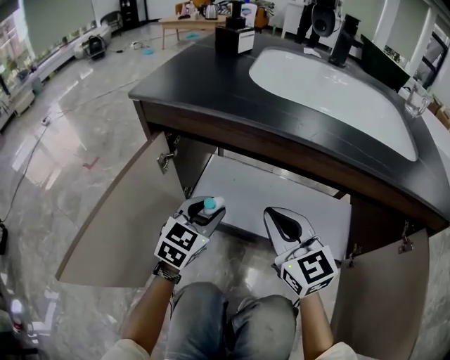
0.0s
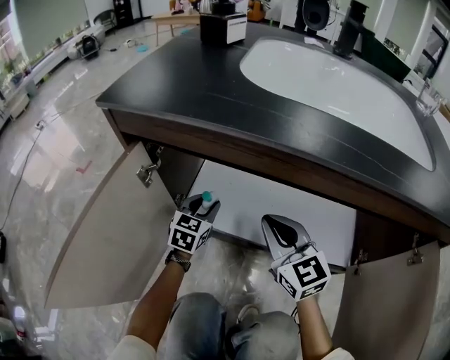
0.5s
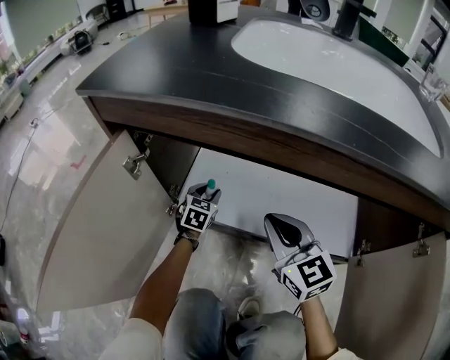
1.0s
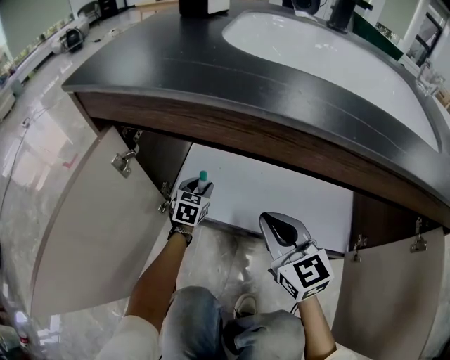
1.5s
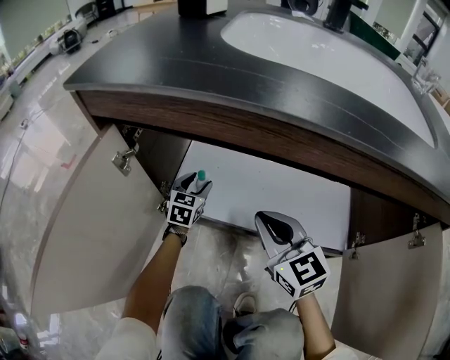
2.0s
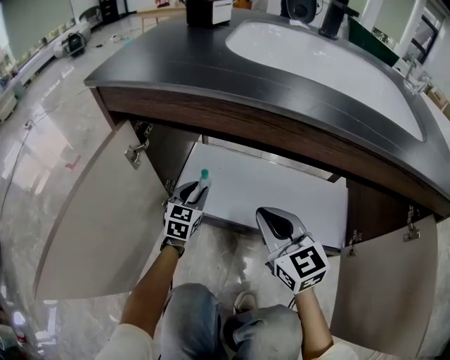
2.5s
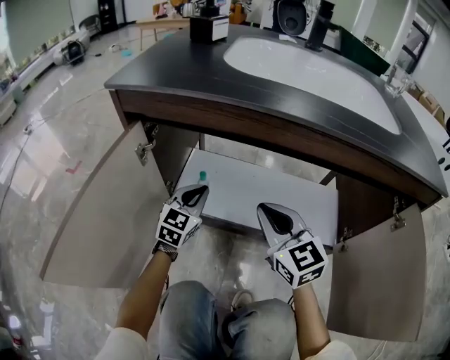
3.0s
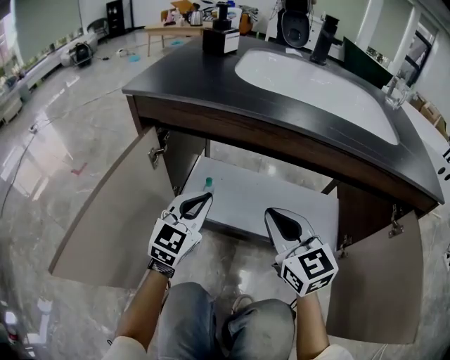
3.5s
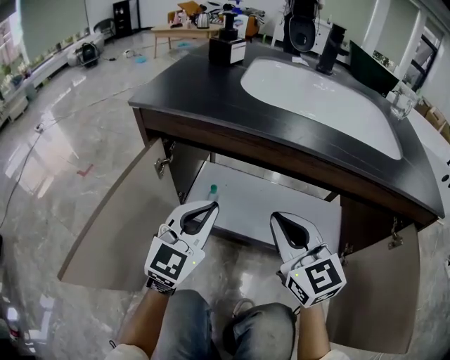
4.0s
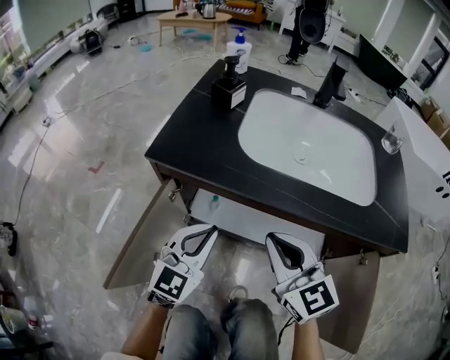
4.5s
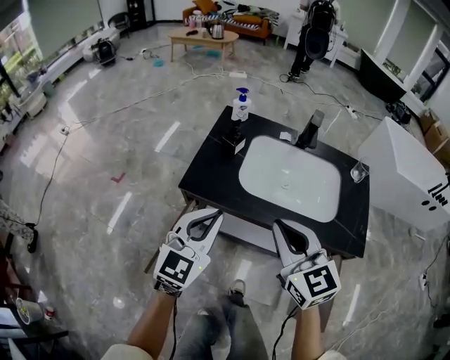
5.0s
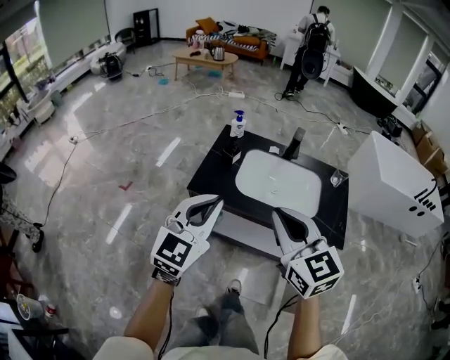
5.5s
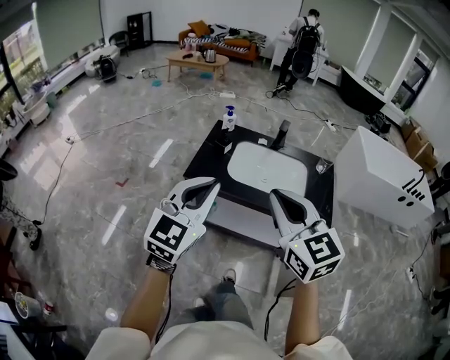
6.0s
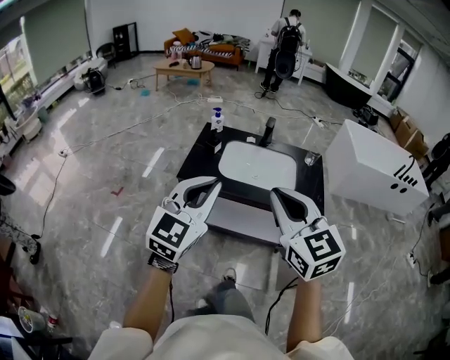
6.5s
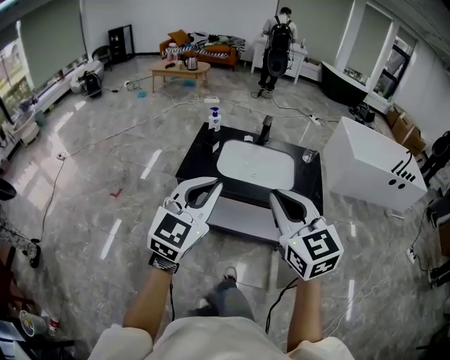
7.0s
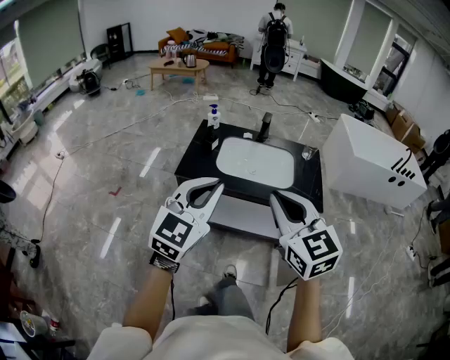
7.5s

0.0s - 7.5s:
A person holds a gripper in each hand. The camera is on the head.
0.0s - 2.0s: The right gripper heads downward, covering about 10 cm. Meanwhile the left gripper goes approximately 25 cm downward and forward, and opens its fingers.
2.0s - 4.0s: The right gripper heads upward and backward, covering some 15 cm, while the left gripper moves upward and backward, roughly 35 cm, rotates about 30 degrees, and closes.
4.0s - 5.5s: The two grippers go about 60 cm upward.
5.5s - 7.5s: The right gripper goes roughly 15 cm backward; the left gripper heads backward, upward and to the right, covering some 15 cm.

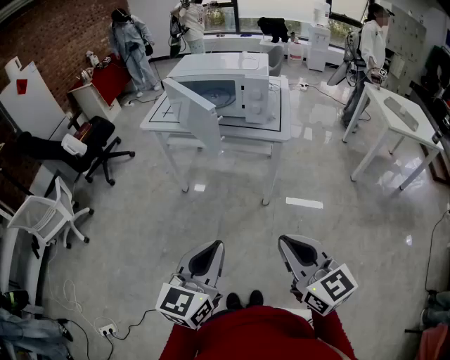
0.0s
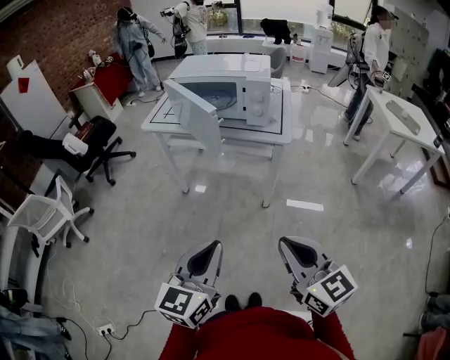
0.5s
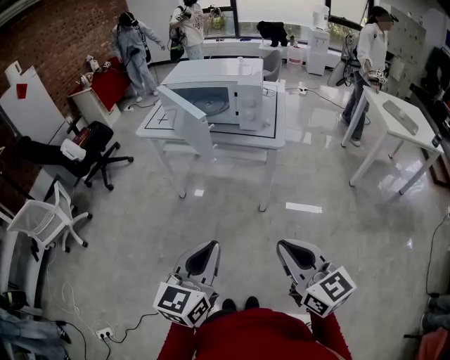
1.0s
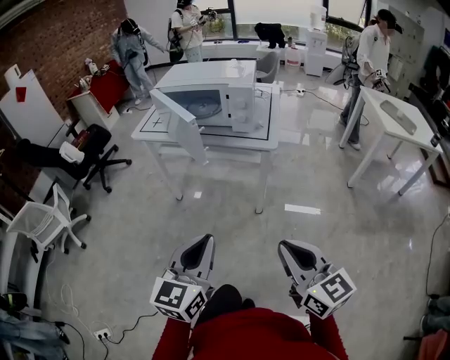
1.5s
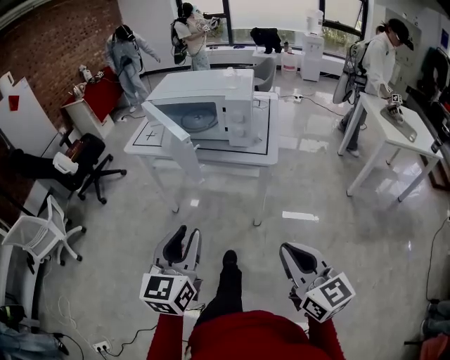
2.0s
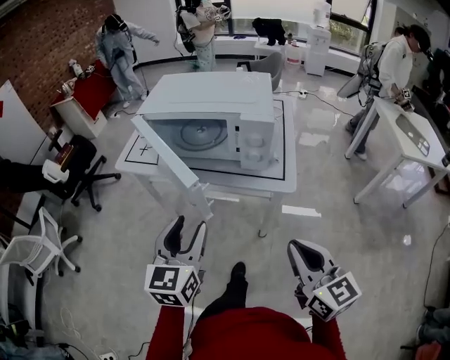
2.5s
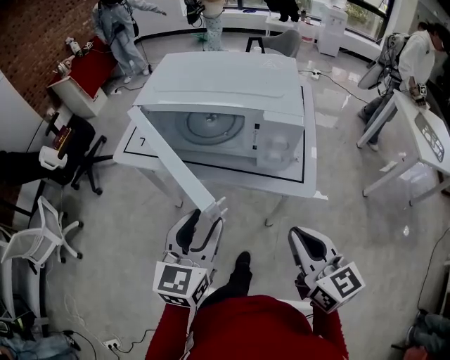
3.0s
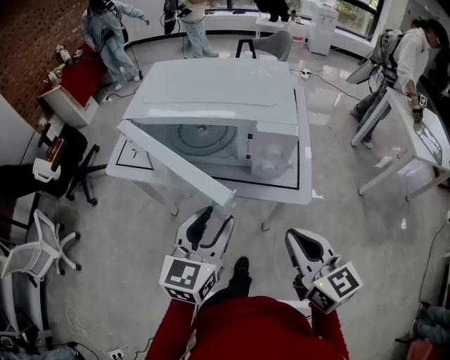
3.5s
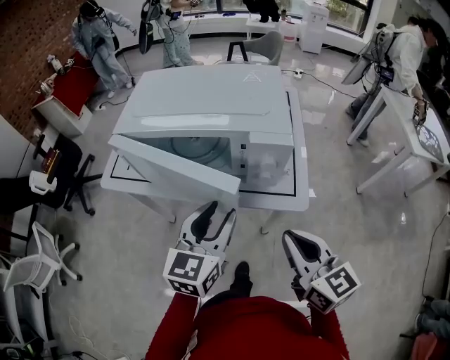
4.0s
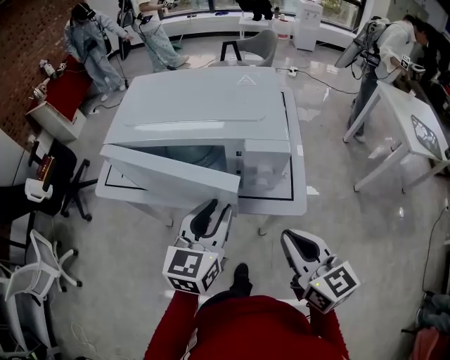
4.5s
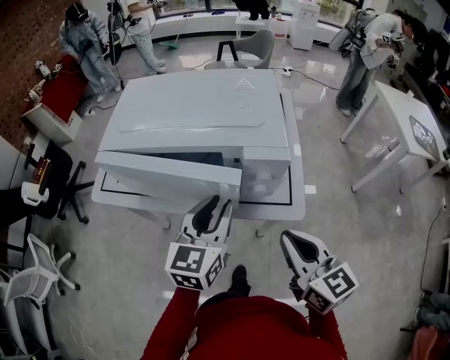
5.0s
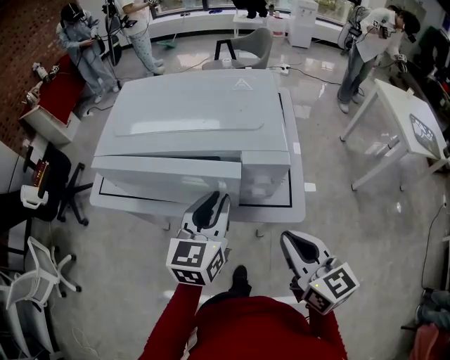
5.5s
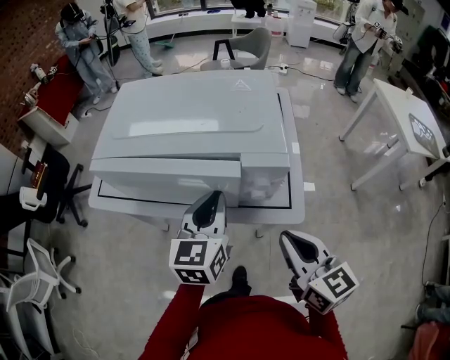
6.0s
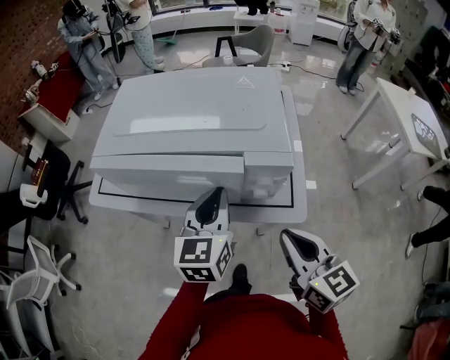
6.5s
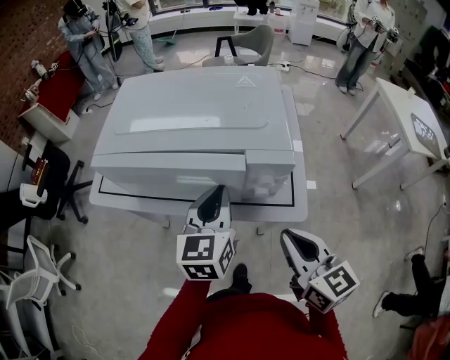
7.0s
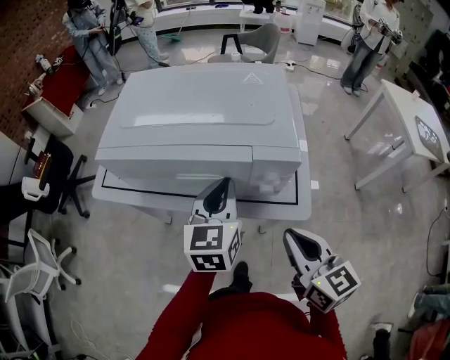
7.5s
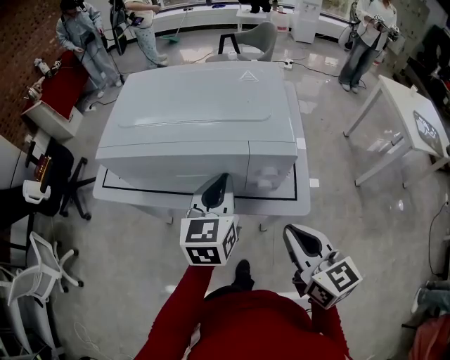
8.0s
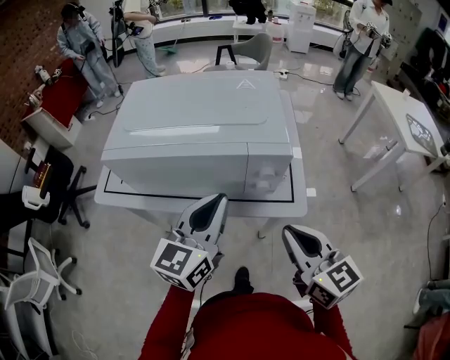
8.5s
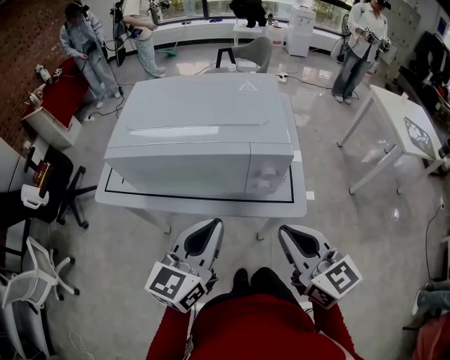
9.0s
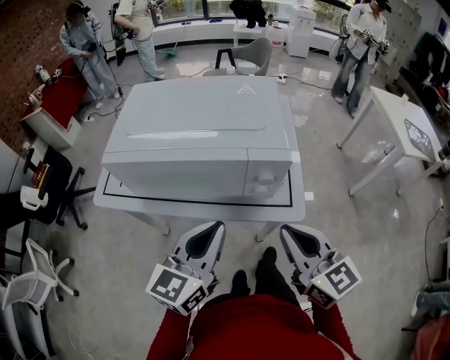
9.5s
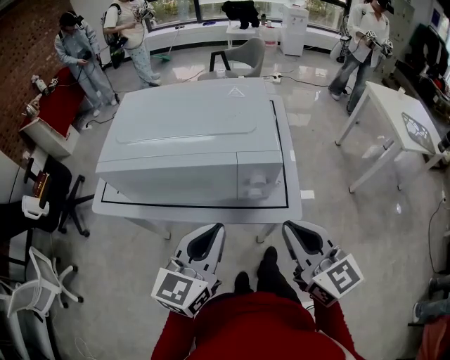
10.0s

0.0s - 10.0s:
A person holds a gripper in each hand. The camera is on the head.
0.0s - 2.0s: The left gripper travels forward by roughly 15 cm, and opens up; the right gripper moves to the right and forward, approximately 10 cm.
2.0s - 4.0s: Both grippers move forward, some 25 cm.
4.0s - 6.0s: The left gripper is displaced forward by roughly 10 cm, and closes its fingers.
6.0s - 8.0s: The grippers make only small movements.
8.0s - 10.0s: The left gripper shifts roughly 10 cm backward. The right gripper moves approximately 5 cm.

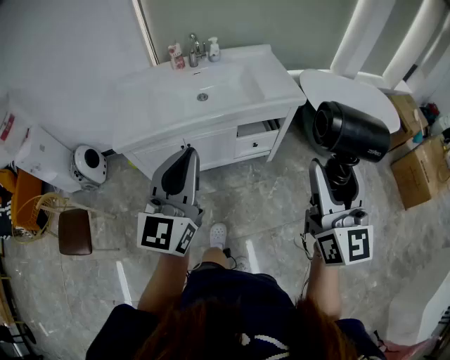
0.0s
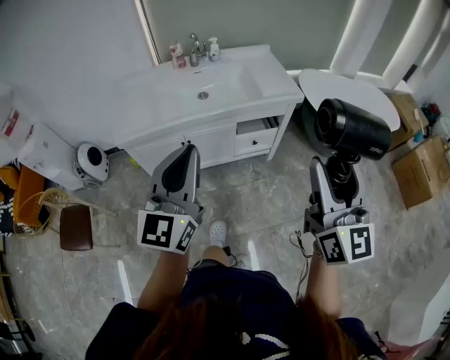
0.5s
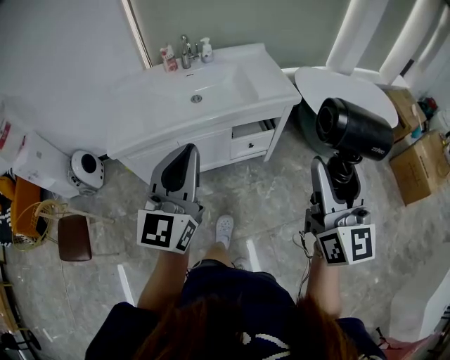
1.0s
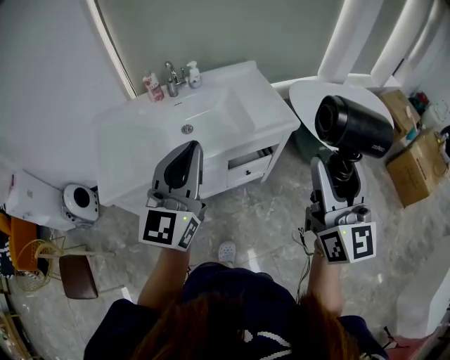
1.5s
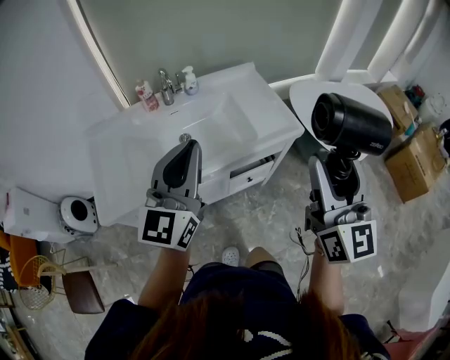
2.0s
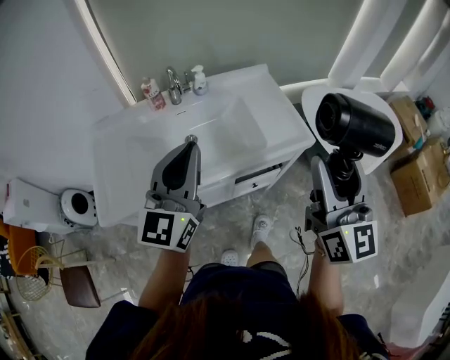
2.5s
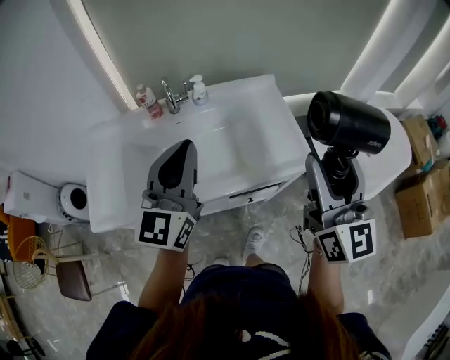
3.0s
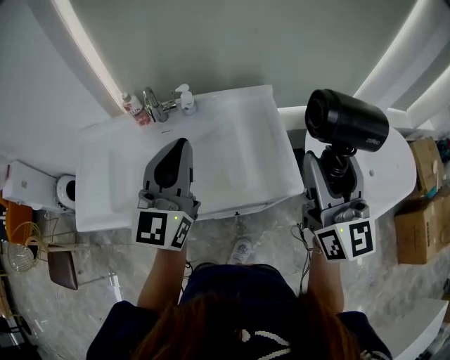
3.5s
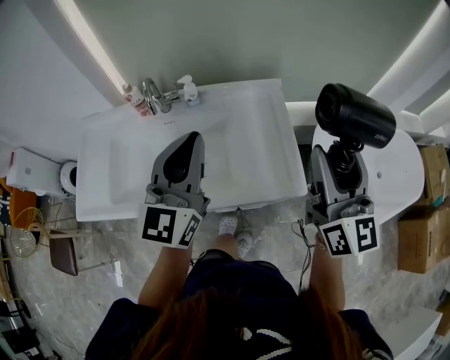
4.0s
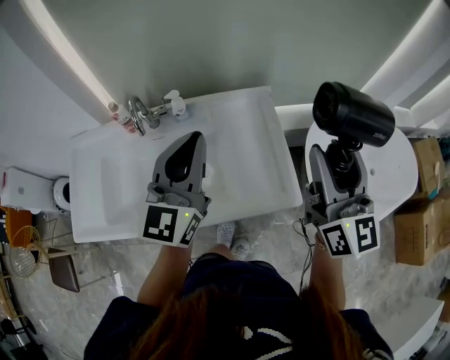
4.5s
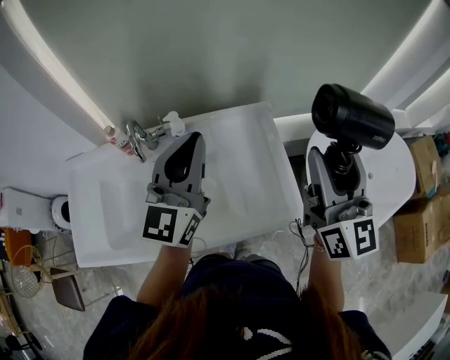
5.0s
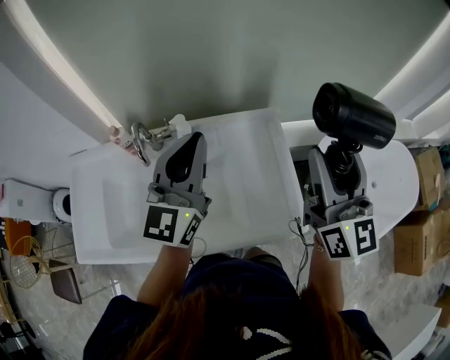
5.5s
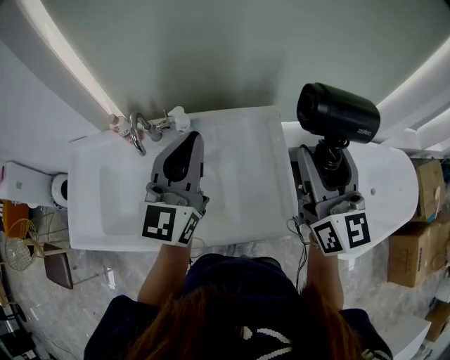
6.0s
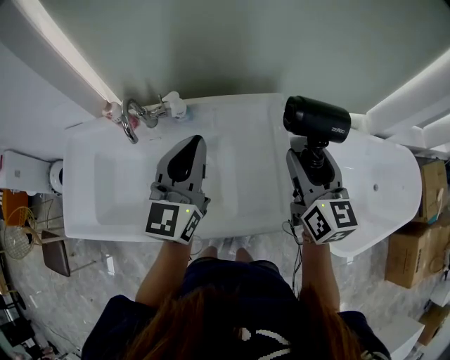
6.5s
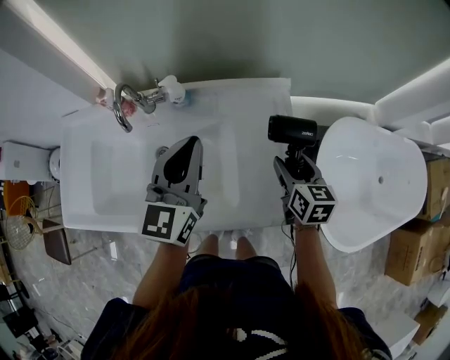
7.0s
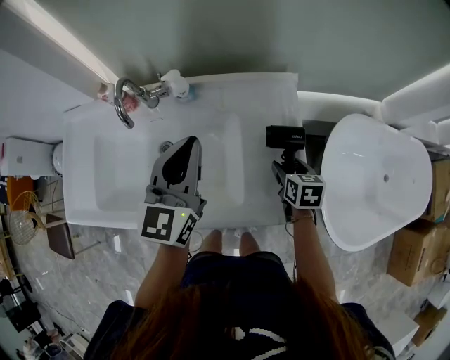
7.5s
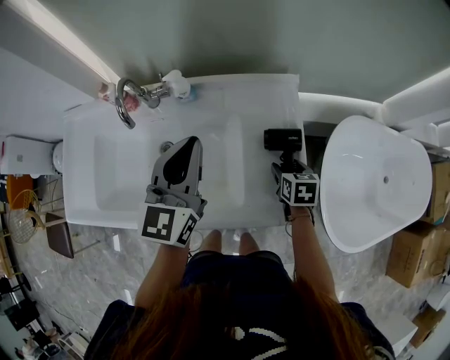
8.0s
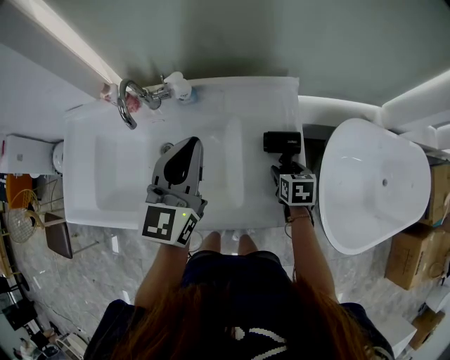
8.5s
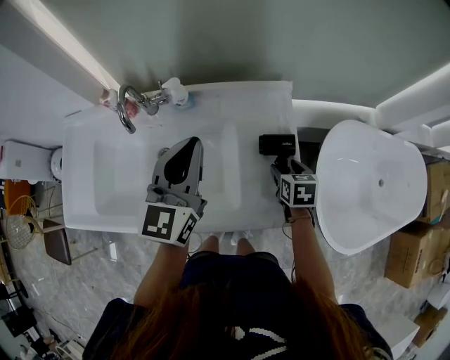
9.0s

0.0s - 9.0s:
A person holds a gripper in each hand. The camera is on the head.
0.0s - 2.0s: Both grippers move forward, some 30 cm.
2.0s - 4.5s: The right gripper is displaced forward by about 40 cm. The left gripper shifts some 35 cm forward and to the right.
4.5s - 7.0s: The right gripper moves downward and forward, some 35 cm, and tips its fingers downward by about 40 degrees, while the left gripper goes some 15 cm downward and forward.
7.0s - 9.0s: The right gripper goes approximately 10 cm downward, and swivels approximately 20 degrees.
